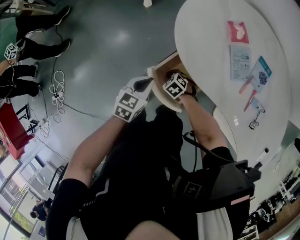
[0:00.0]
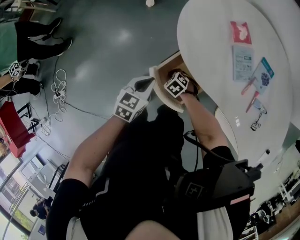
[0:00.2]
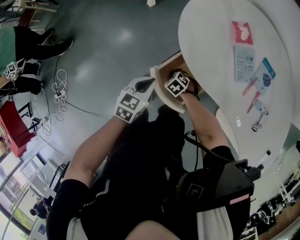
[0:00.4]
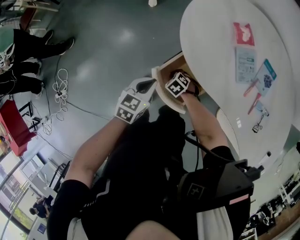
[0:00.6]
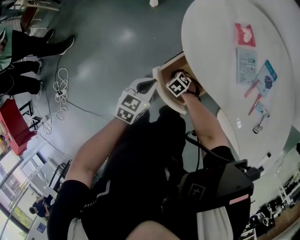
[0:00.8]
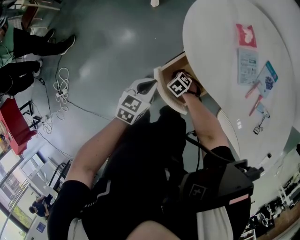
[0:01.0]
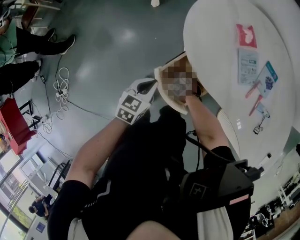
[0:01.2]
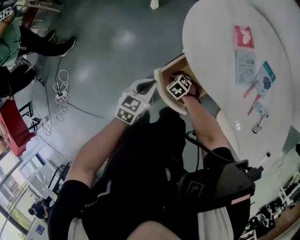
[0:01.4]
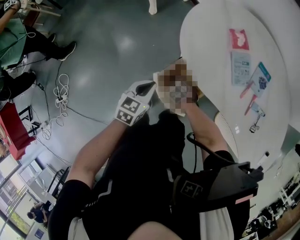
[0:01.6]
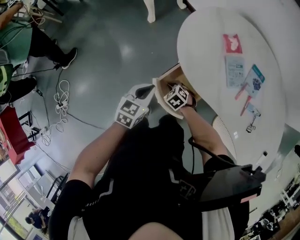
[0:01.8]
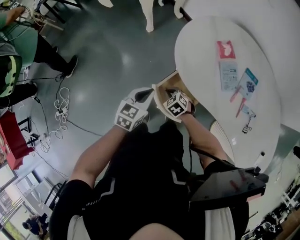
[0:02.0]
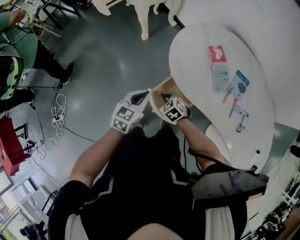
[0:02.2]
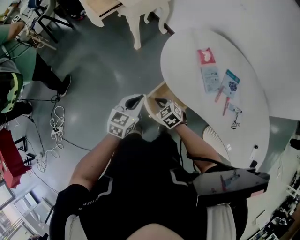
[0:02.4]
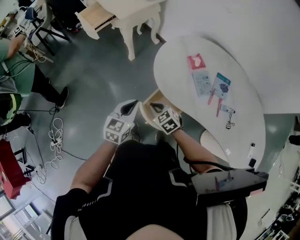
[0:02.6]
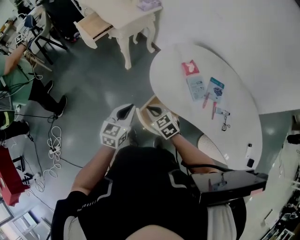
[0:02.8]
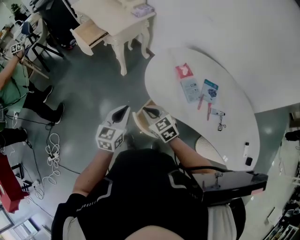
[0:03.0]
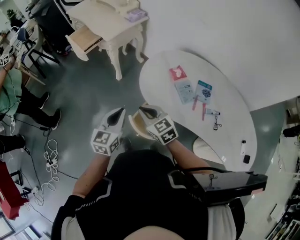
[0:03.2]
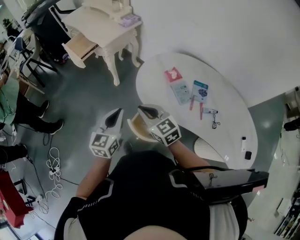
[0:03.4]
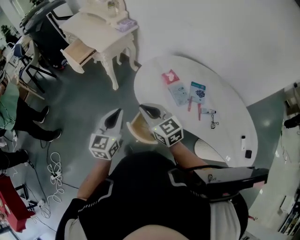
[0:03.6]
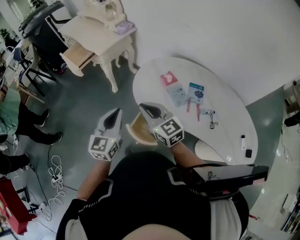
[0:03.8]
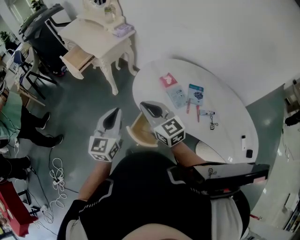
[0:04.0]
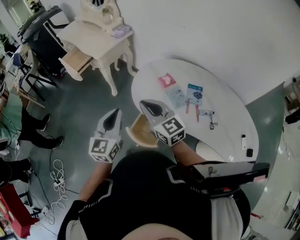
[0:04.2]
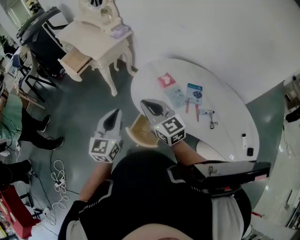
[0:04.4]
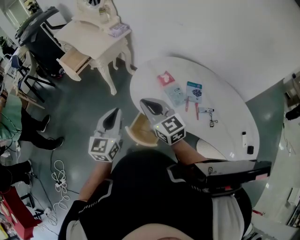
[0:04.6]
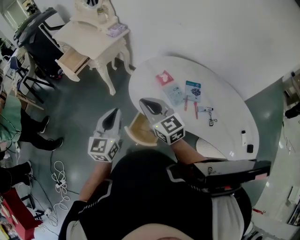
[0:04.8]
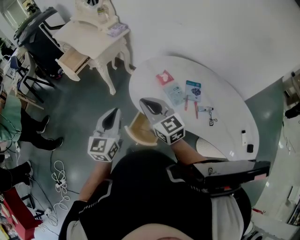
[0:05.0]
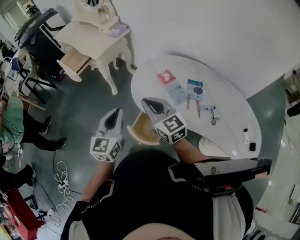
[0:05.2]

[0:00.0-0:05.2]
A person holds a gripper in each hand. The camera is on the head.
0:00.0 to 0:01.8: Both grippers move upward, about 5 cm.
0:01.8 to 0:03.4: The left gripper heads upward, covering roughly 25 cm, and turns by about 30 degrees. The right gripper shifts about 40 cm upward, and angles its fingers upward, by about 40 degrees.
0:03.4 to 0:05.2: The right gripper travels upward and to the right by approximately 10 cm. The left gripper goes some 5 cm upward.

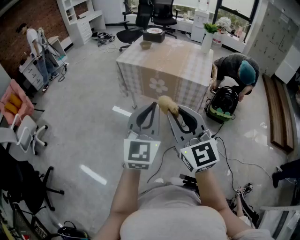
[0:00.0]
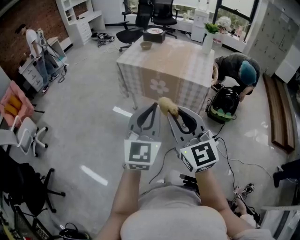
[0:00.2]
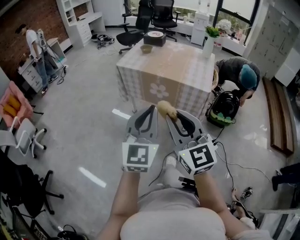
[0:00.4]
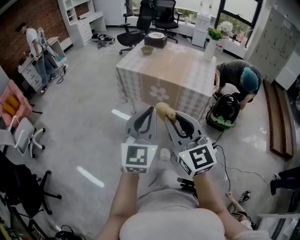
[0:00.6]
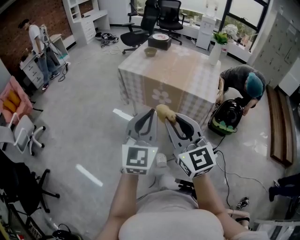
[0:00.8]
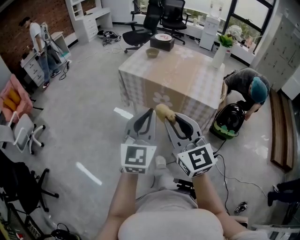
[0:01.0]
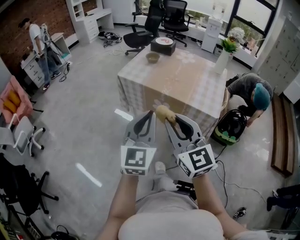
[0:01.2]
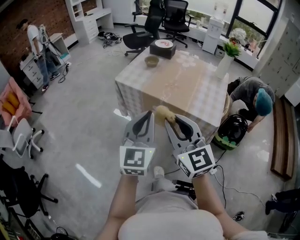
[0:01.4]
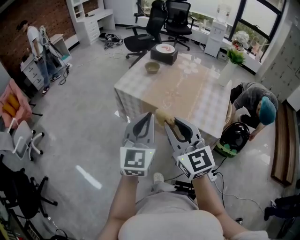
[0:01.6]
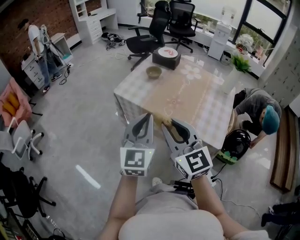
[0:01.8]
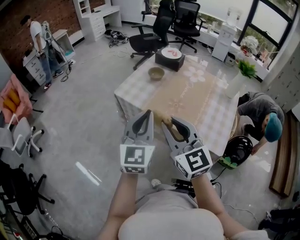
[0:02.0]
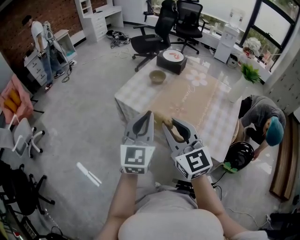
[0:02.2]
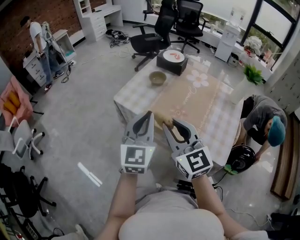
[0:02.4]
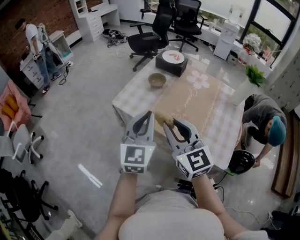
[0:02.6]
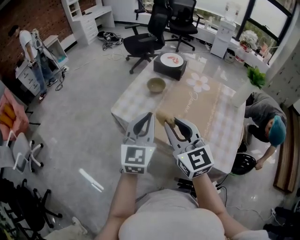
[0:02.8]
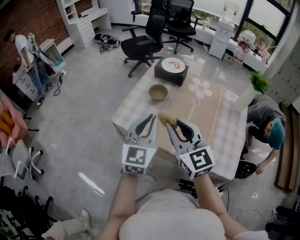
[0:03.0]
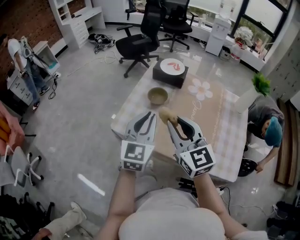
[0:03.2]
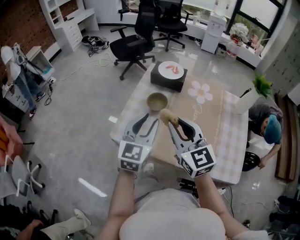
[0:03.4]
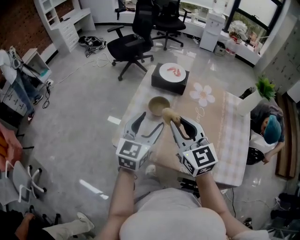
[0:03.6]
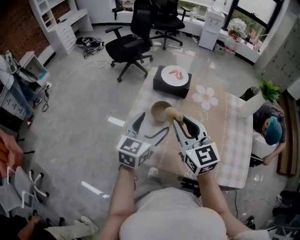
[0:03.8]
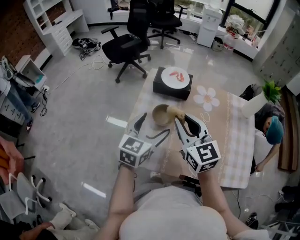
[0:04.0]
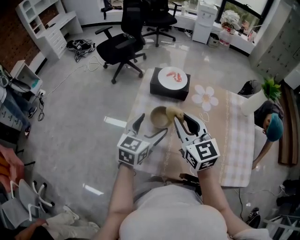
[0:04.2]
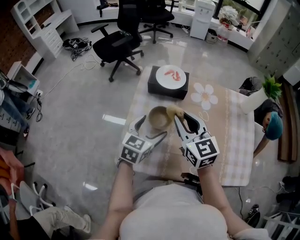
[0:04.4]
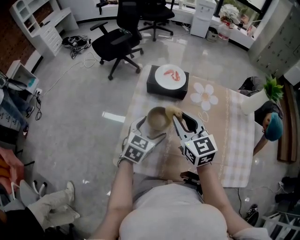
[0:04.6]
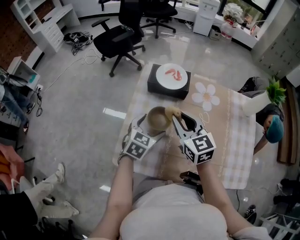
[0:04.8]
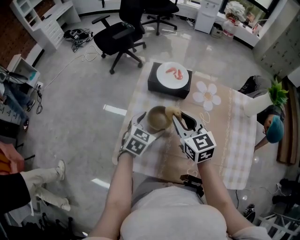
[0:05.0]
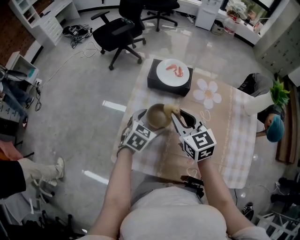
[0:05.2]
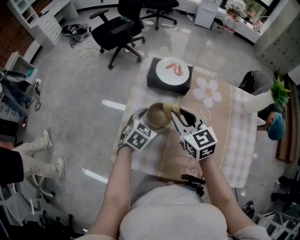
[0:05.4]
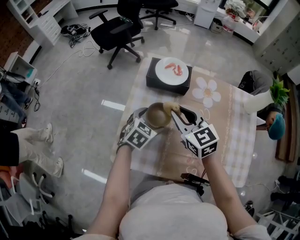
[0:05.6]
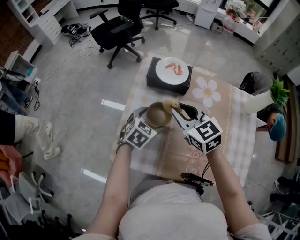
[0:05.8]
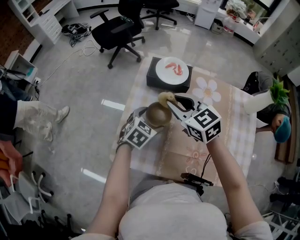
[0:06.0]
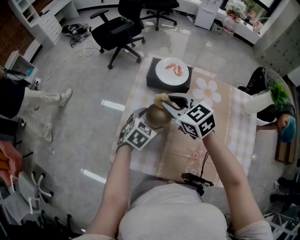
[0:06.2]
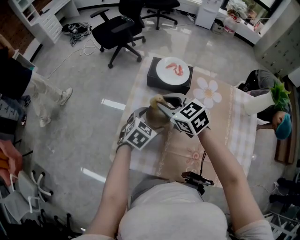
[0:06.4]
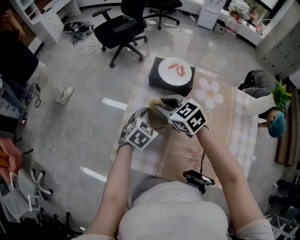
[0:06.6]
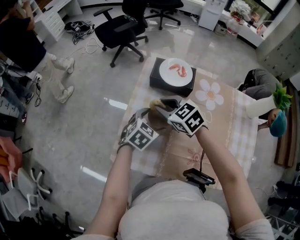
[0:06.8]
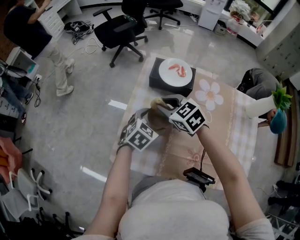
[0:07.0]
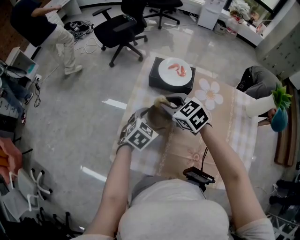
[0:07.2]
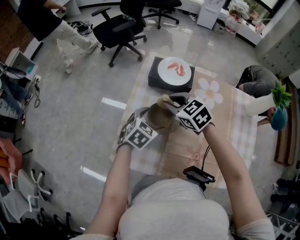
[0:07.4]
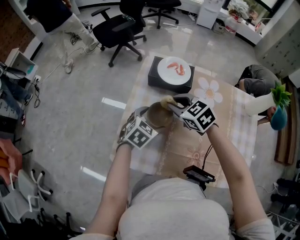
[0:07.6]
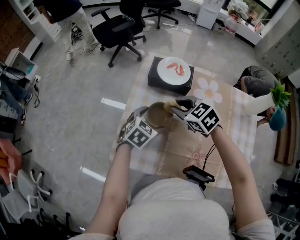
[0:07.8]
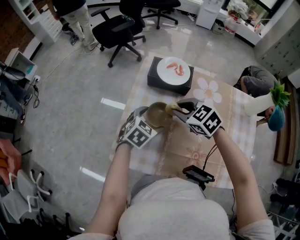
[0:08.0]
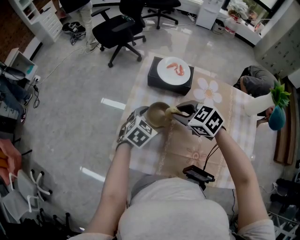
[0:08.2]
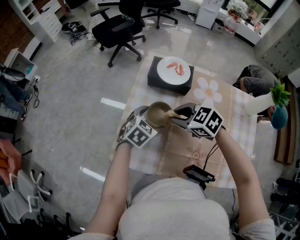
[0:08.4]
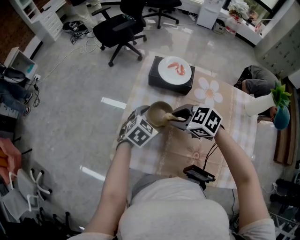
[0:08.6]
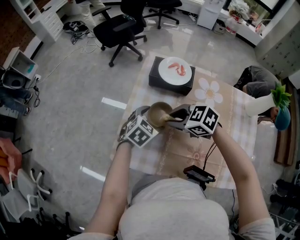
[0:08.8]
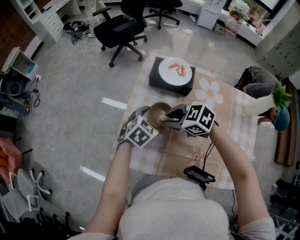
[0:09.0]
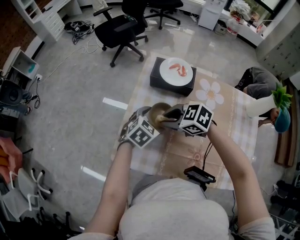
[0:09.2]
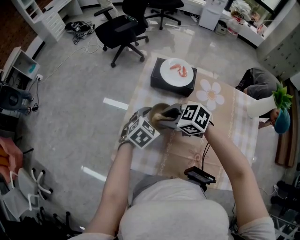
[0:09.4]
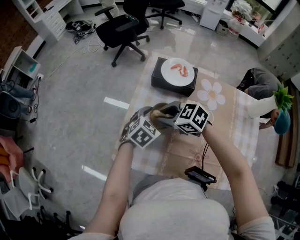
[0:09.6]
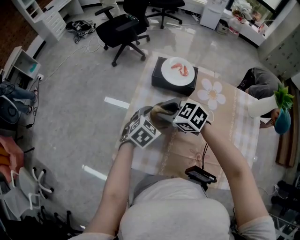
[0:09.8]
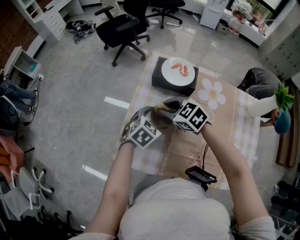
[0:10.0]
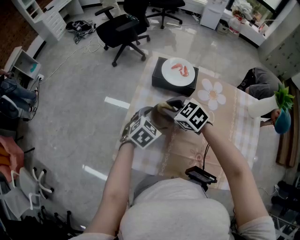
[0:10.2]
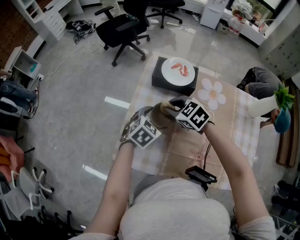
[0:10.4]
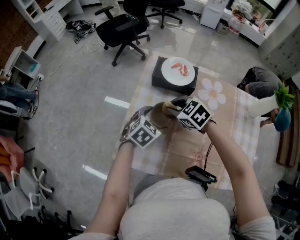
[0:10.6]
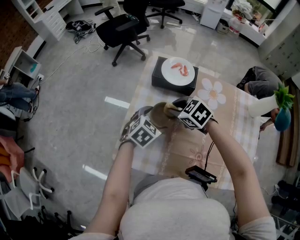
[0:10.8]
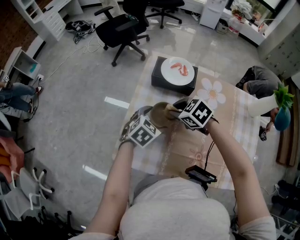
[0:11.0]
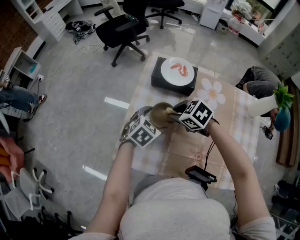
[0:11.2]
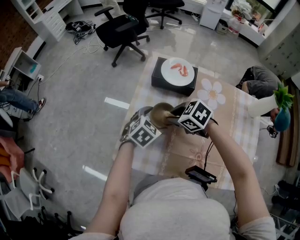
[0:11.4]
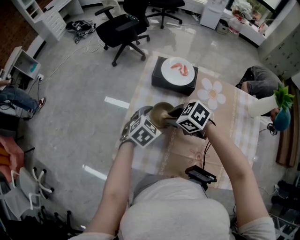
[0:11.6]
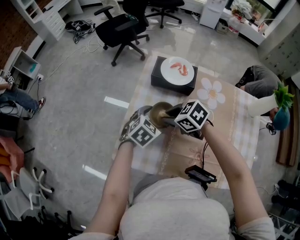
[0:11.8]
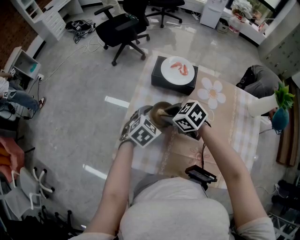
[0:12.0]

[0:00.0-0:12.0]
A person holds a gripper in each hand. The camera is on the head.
0:00.0 to 0:01.6: Both grippers move forward, roughly 30 cm.
0:01.6 to 0:03.0: The grippers both shift forward by about 30 cm.
0:03.0 to 0:04.4: The right gripper is displaced forward by roughly 25 cm. The left gripper goes roughly 25 cm forward and downward, turns by approximately 40 degrees, and opens.
0:04.4 to 0:06.0: The right gripper goes roughly 5 cm forward, and swivels roughly 20 degrees, while the left gripper heads downward, covering approximately 10 cm, and rotates some 20 degrees.
0:06.0 to 0:07.6: The right gripper moves downward, some 5 cm.
0:07.6 to 0:09.0: The right gripper moves about 10 cm, and turns by about 30 degrees.
0:09.0 to 0:10.4: The right gripper moves approximately 5 cm.
0:10.4 to 0:12.0: The grippers stay close to where they were, moving slightly.

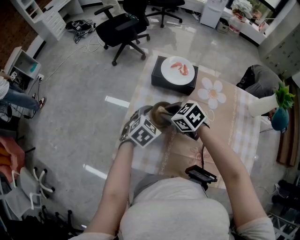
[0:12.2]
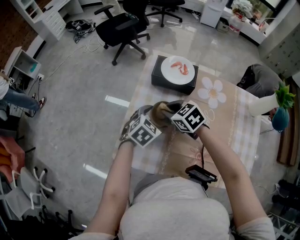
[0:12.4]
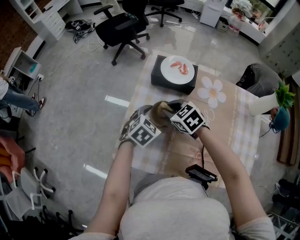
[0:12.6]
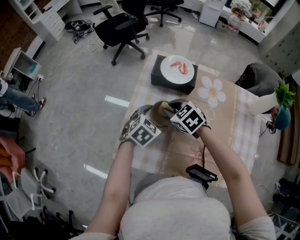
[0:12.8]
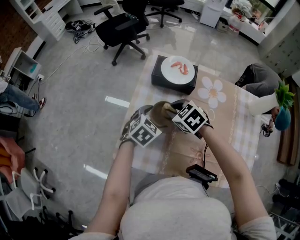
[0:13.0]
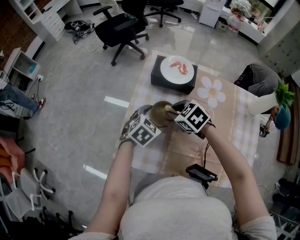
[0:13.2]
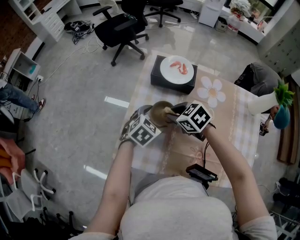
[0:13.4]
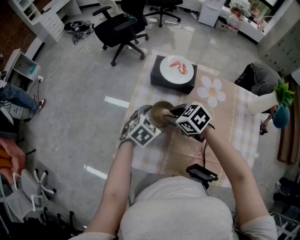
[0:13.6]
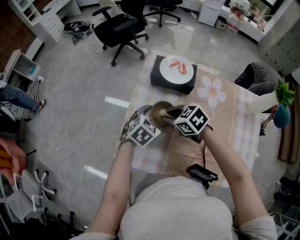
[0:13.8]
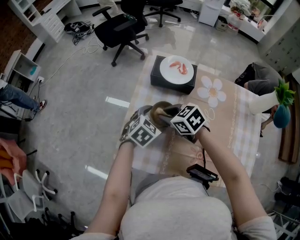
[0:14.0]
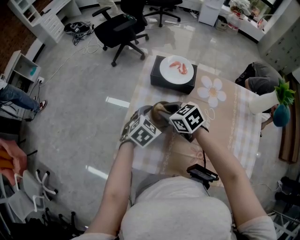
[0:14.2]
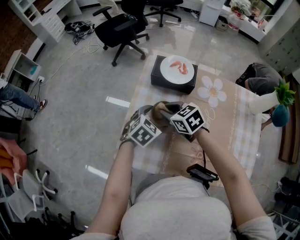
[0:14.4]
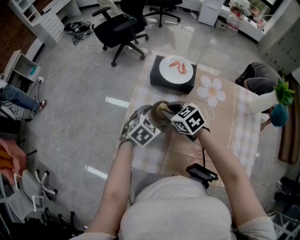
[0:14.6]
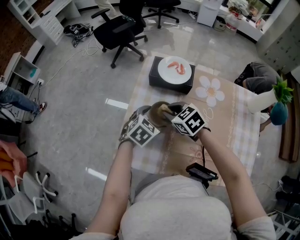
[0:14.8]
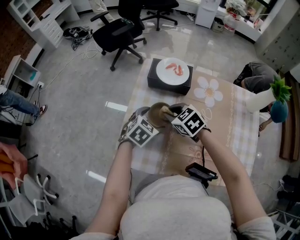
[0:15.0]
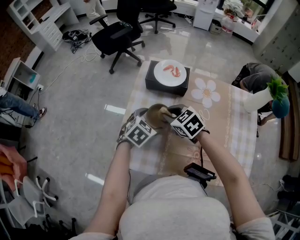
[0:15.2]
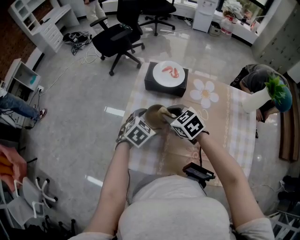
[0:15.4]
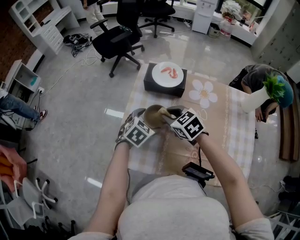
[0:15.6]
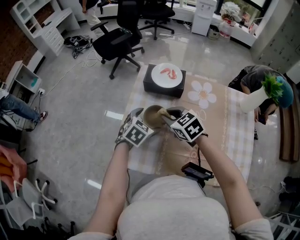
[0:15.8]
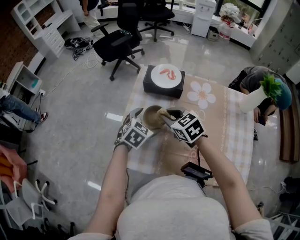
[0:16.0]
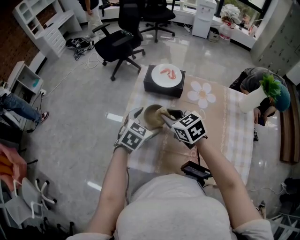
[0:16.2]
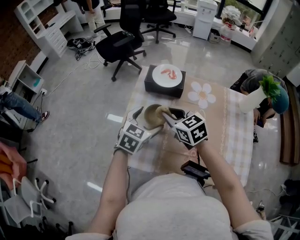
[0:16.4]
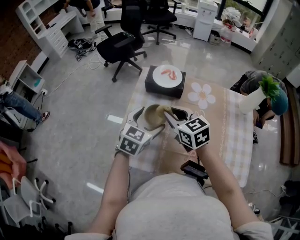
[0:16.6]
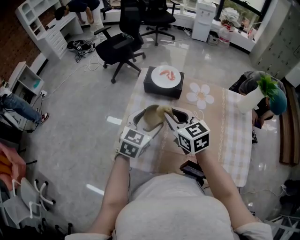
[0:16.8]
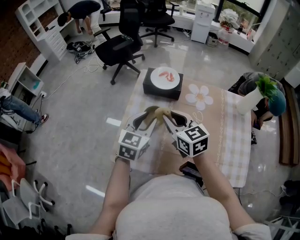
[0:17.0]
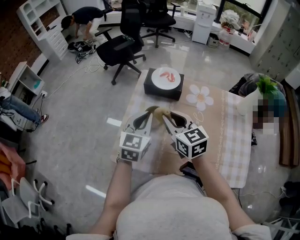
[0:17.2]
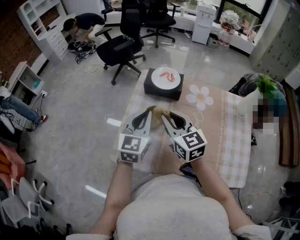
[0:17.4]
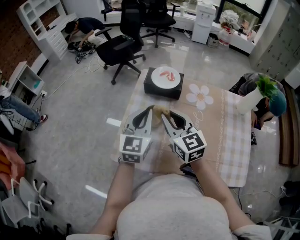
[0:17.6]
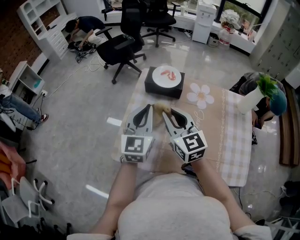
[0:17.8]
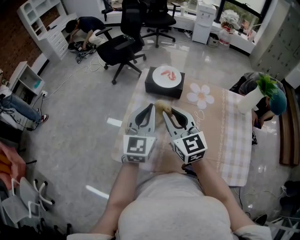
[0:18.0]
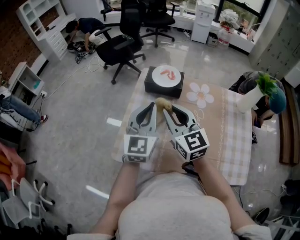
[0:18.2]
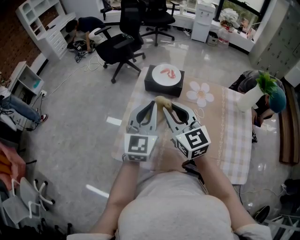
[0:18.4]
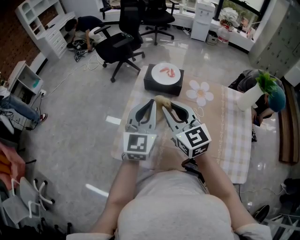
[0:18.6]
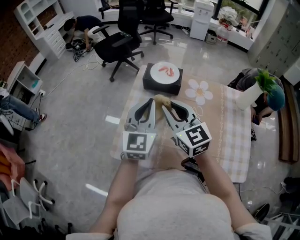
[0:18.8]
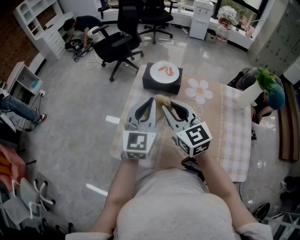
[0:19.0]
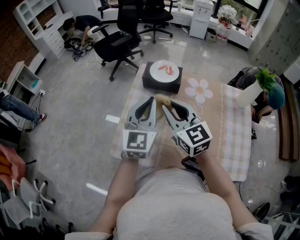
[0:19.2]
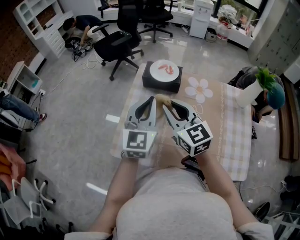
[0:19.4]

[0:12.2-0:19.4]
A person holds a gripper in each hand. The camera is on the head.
0:12.2 to 0:15.0: The grippers make only small movements.
0:15.0 to 0:16.6: The grippers both shift upward by some 10 cm. The left gripper rotates roughly 20 degrees, while the right gripper rotates about 30 degrees.
0:16.6 to 0:18.0: The left gripper shifts about 10 cm upward, turns by some 30 degrees, and closes its fingers, while the right gripper heads upward, covering about 5 cm, and swivels approximately 20 degrees.
0:18.0 to 0:19.4: The grippers move only a little.
